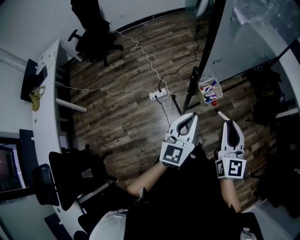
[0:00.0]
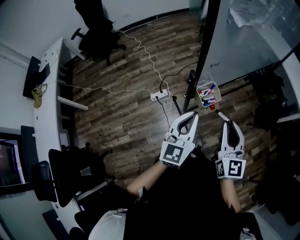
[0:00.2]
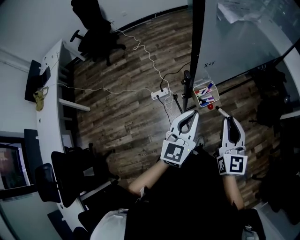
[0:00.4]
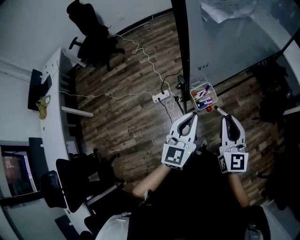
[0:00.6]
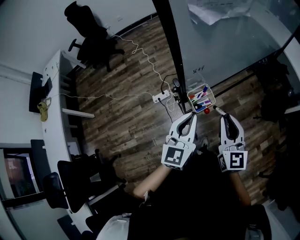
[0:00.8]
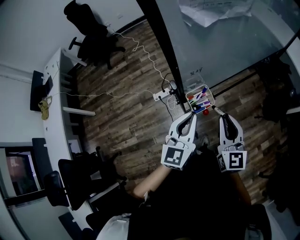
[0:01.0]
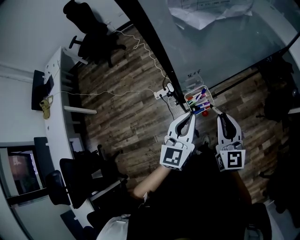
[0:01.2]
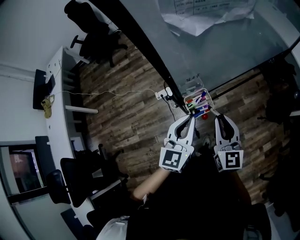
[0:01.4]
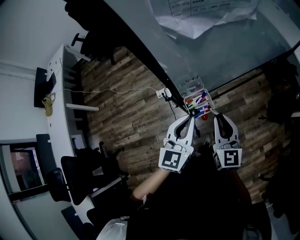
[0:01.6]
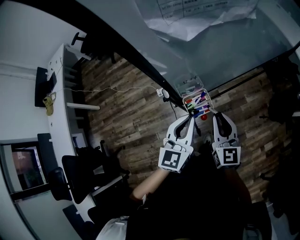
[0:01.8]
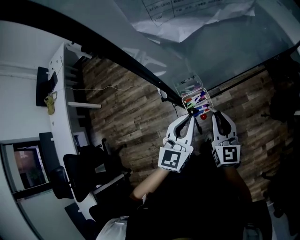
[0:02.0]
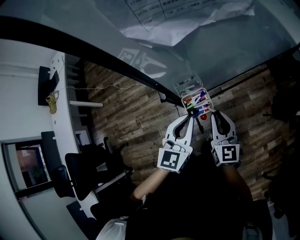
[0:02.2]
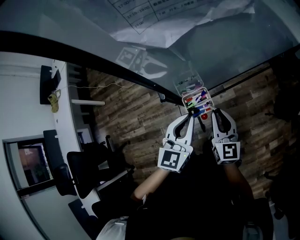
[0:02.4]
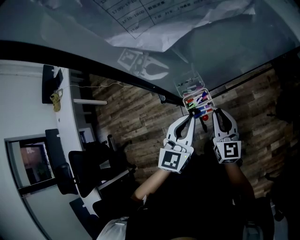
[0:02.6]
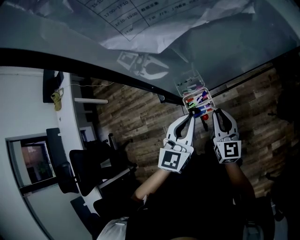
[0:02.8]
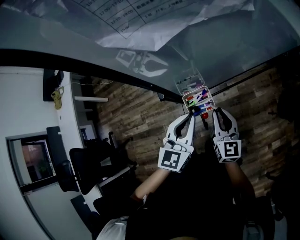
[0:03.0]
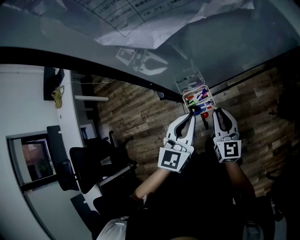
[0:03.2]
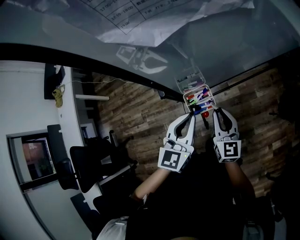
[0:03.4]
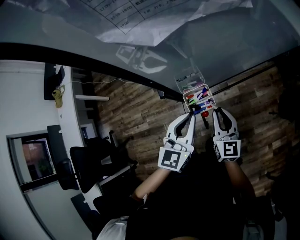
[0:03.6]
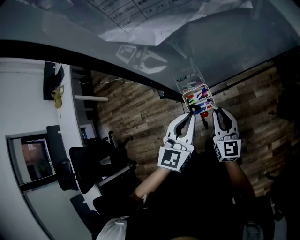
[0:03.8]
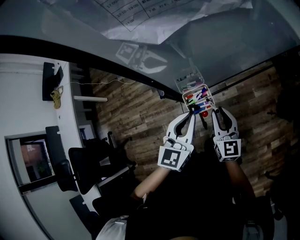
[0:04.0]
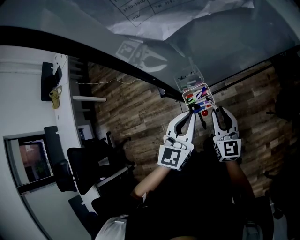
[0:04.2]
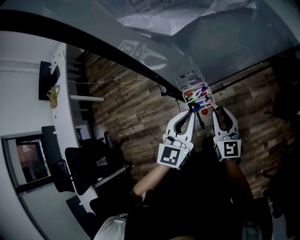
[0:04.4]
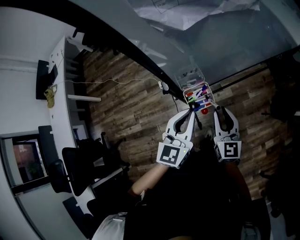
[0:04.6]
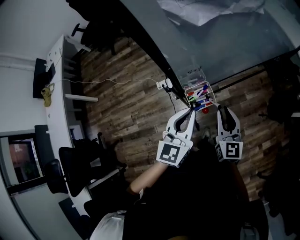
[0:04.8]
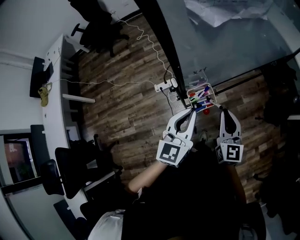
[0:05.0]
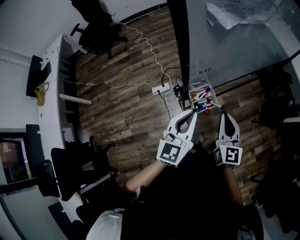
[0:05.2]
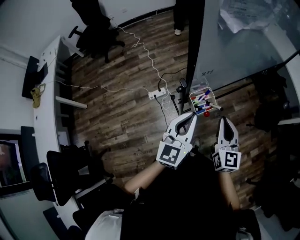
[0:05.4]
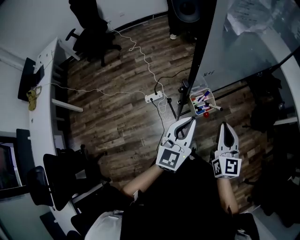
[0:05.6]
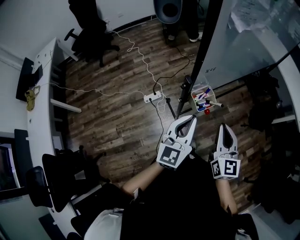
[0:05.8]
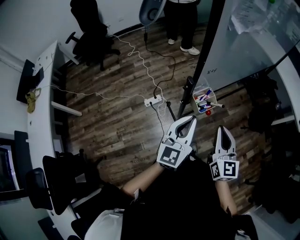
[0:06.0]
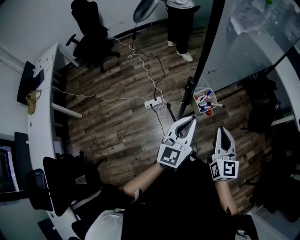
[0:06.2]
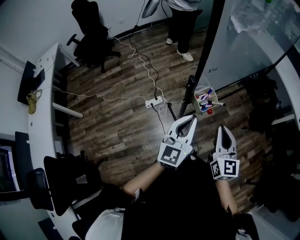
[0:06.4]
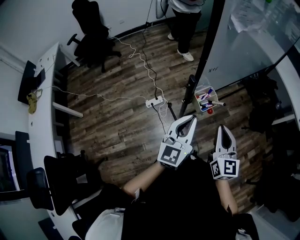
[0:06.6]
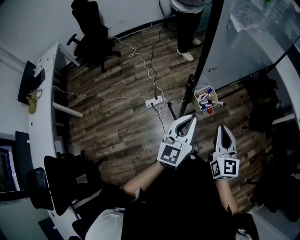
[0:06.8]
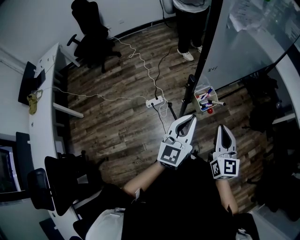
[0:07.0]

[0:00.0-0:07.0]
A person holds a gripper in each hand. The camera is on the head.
0:00.0 to 0:01.4: The right gripper shifts about 15 cm forward and downward; the left gripper heads forward and to the right, covering about 10 cm.
0:01.4 to 0:02.8: The right gripper goes about 10 cm downward.
0:02.8 to 0:04.2: Both grippers stay put.
0:04.2 to 0:05.6: The left gripper heads backward and to the left, covering some 10 cm, while the right gripper travels upward and backward by about 15 cm.
0:05.6 to 0:07.0: The right gripper changes place by approximately 5 cm.

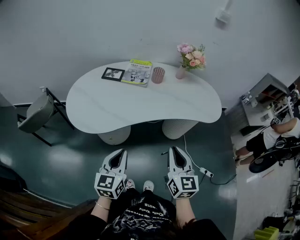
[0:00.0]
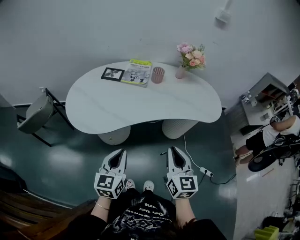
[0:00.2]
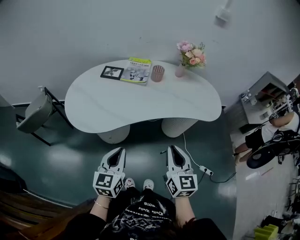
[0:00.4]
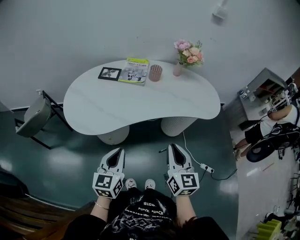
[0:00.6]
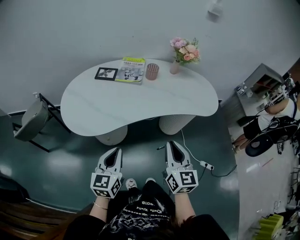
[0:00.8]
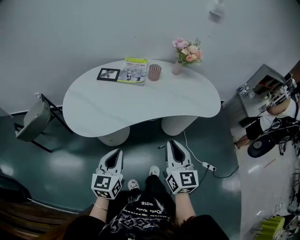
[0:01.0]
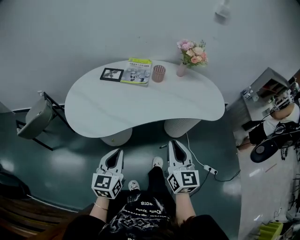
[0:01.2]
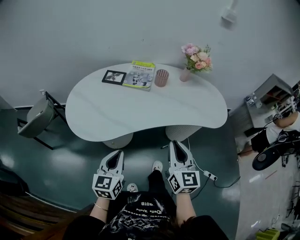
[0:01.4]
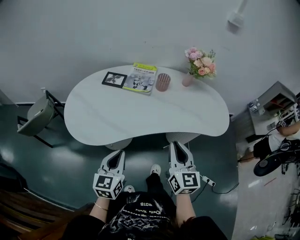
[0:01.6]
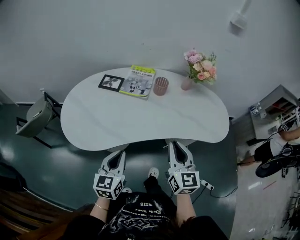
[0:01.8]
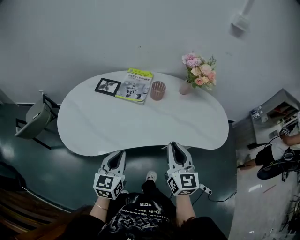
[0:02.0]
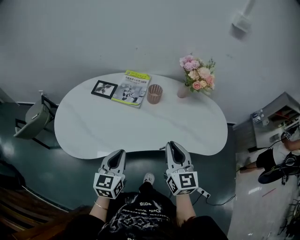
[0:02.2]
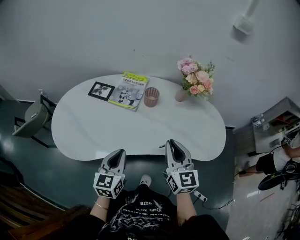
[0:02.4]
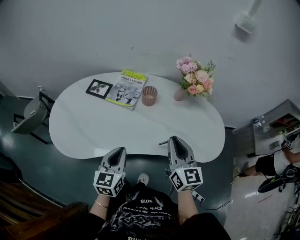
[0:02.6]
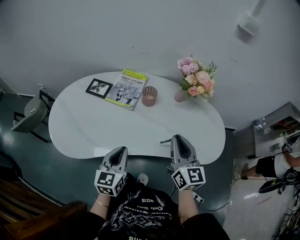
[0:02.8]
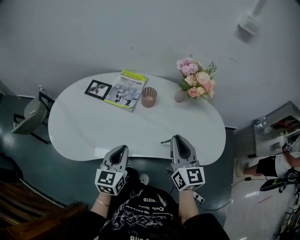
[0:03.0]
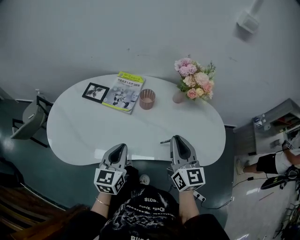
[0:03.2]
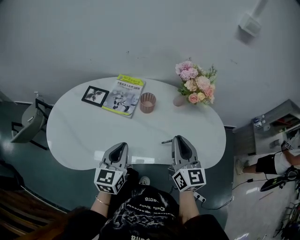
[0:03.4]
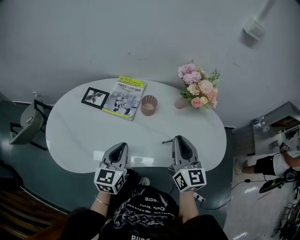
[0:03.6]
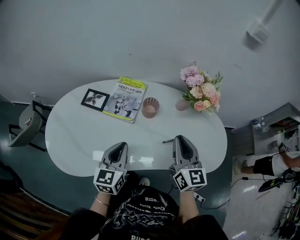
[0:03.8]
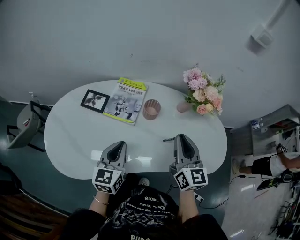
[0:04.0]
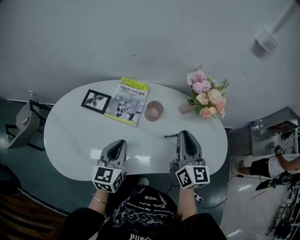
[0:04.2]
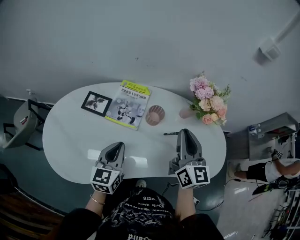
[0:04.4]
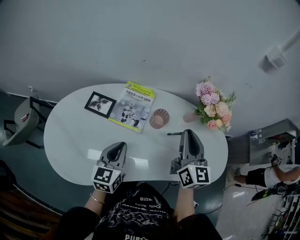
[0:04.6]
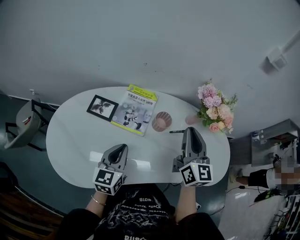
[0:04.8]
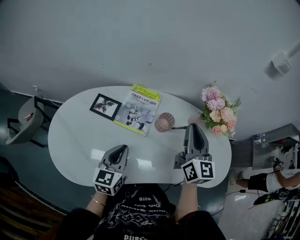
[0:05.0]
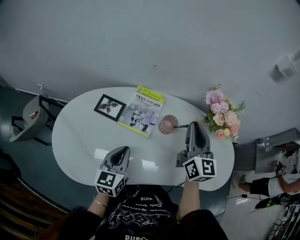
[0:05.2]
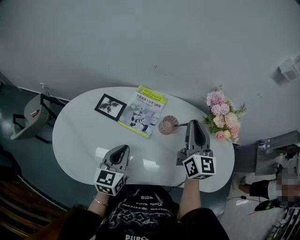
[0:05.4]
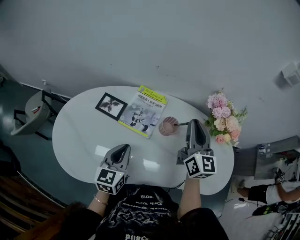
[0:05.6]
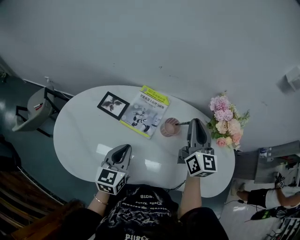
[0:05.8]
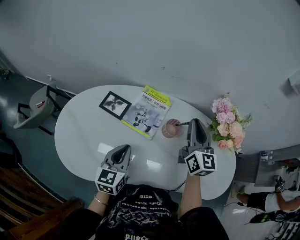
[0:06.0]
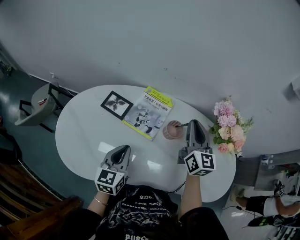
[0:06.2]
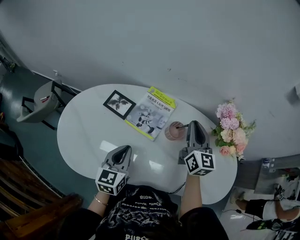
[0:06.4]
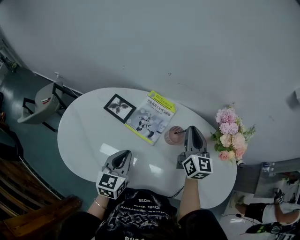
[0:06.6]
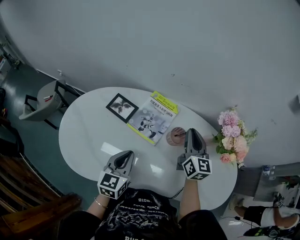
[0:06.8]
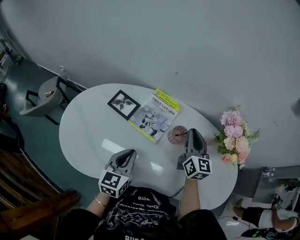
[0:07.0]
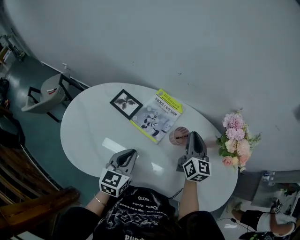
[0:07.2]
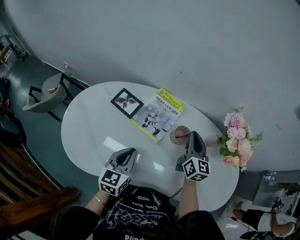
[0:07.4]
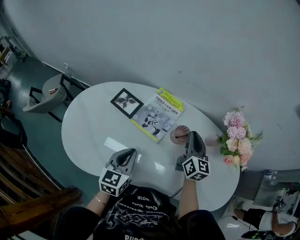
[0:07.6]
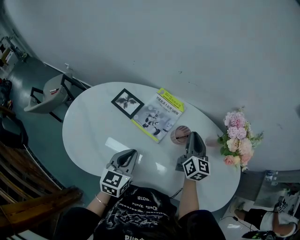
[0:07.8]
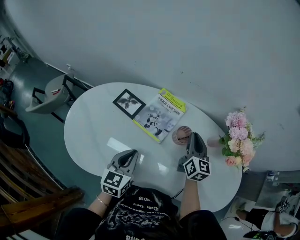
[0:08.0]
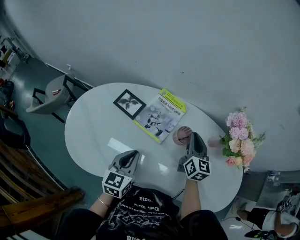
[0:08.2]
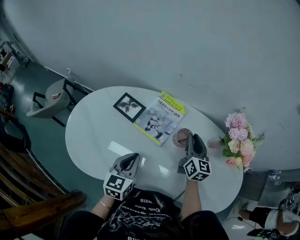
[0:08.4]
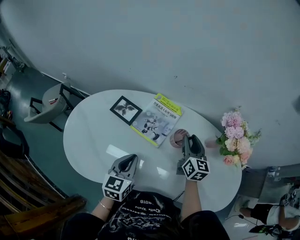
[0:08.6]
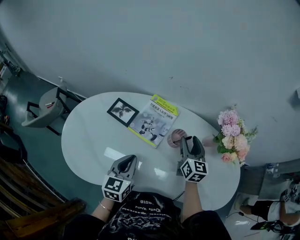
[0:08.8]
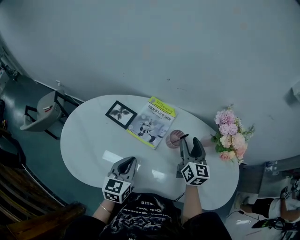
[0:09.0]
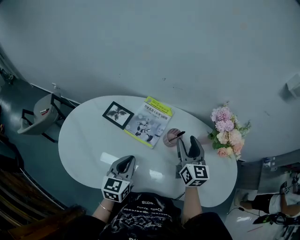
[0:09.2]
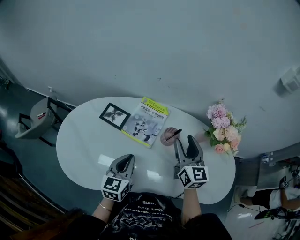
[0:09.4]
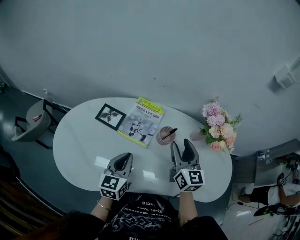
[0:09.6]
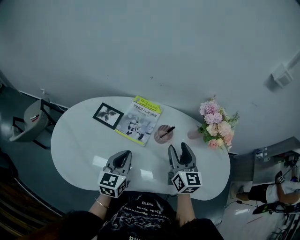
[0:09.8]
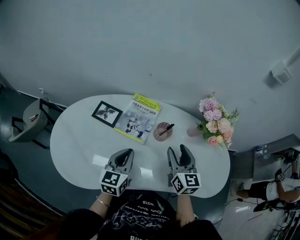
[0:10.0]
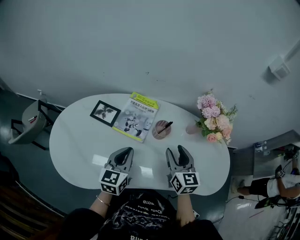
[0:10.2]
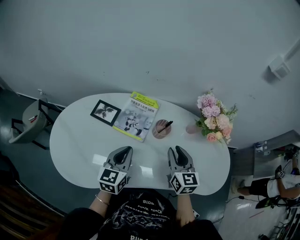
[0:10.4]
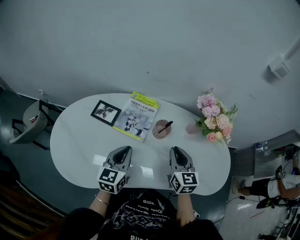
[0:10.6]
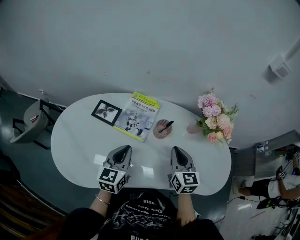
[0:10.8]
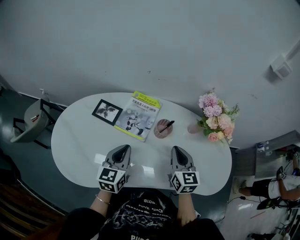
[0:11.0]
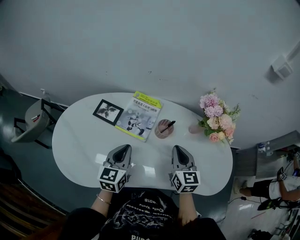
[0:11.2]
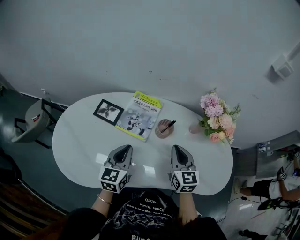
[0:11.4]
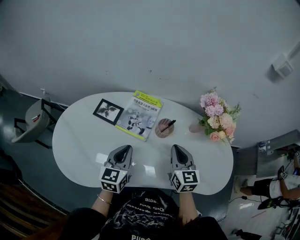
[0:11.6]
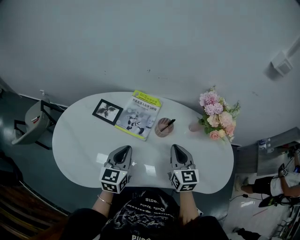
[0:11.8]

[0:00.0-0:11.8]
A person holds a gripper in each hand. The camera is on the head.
0:00.0 to 0:01.4: The right gripper goes about 5 cm forward. Meanwhile the left gripper shifts by approximately 5 cm.
0:01.4 to 0:03.0: Both grippers move forward and to the right, some 30 cm.
0:03.0 to 0:04.4: The two grippers go roughly 15 cm forward and to the left.
0:04.4 to 0:06.0: The right gripper shifts about 15 cm forward.
0:06.0 to 0:07.4: The right gripper goes about 10 cm downward.
0:07.4 to 0:08.8: The right gripper opens up.
0:08.8 to 0:10.4: The right gripper goes roughly 10 cm backward, and closes.
0:10.4 to 0:11.8: The right gripper closes its fingers.

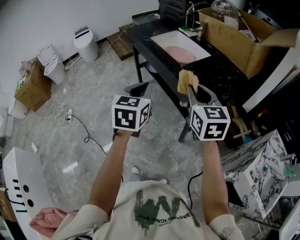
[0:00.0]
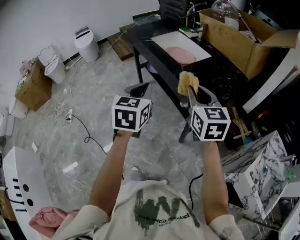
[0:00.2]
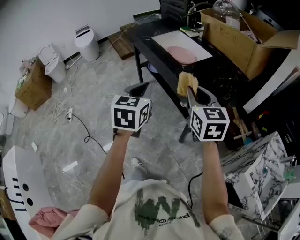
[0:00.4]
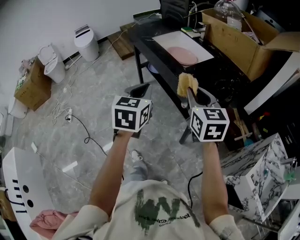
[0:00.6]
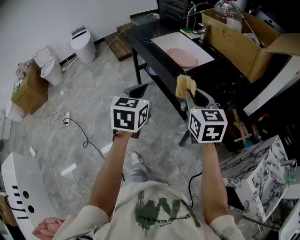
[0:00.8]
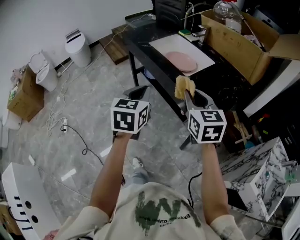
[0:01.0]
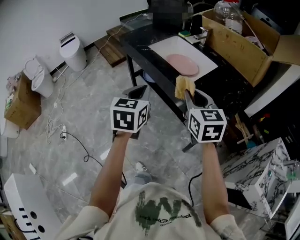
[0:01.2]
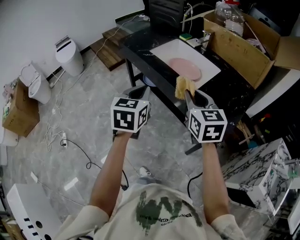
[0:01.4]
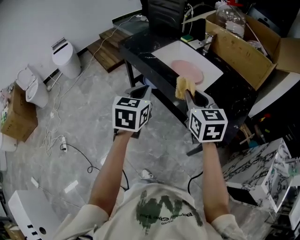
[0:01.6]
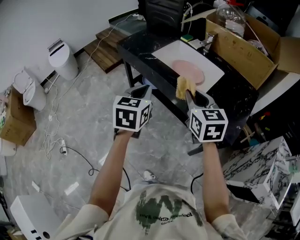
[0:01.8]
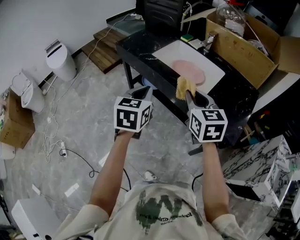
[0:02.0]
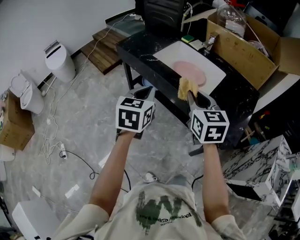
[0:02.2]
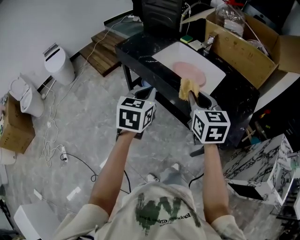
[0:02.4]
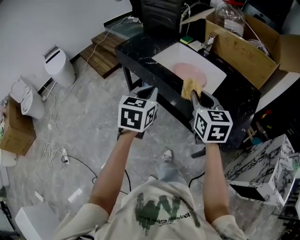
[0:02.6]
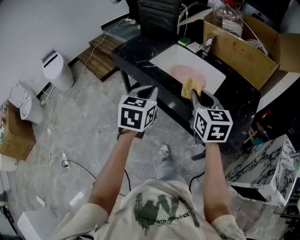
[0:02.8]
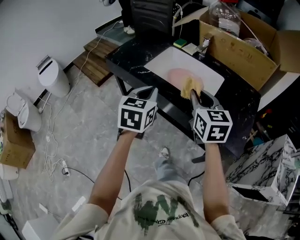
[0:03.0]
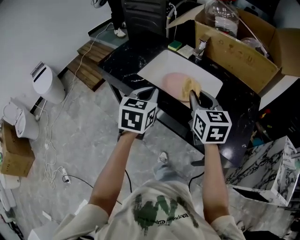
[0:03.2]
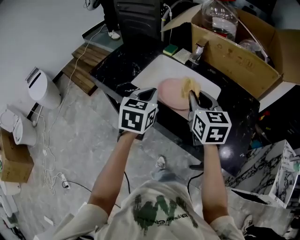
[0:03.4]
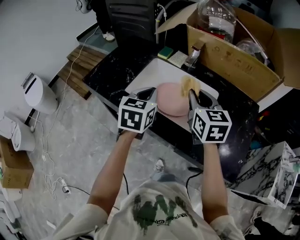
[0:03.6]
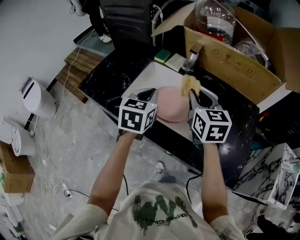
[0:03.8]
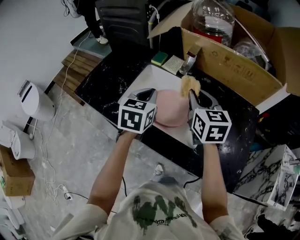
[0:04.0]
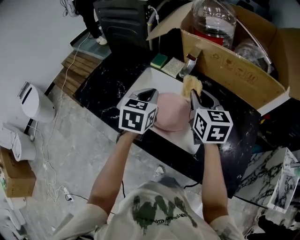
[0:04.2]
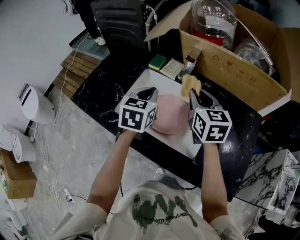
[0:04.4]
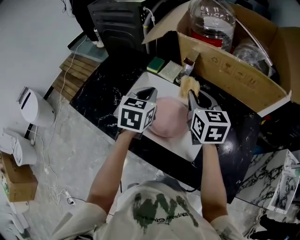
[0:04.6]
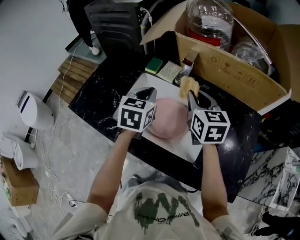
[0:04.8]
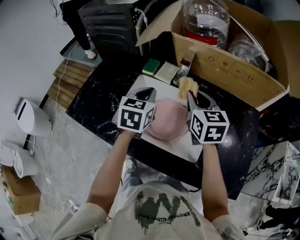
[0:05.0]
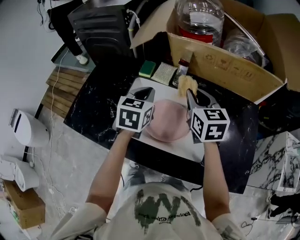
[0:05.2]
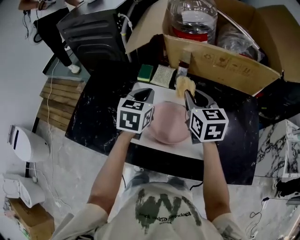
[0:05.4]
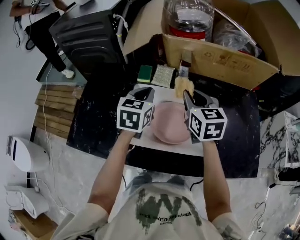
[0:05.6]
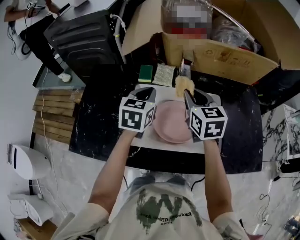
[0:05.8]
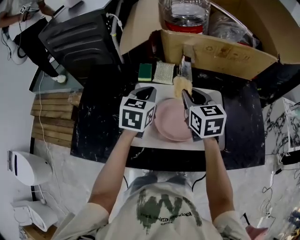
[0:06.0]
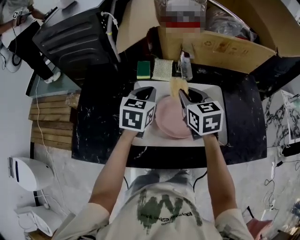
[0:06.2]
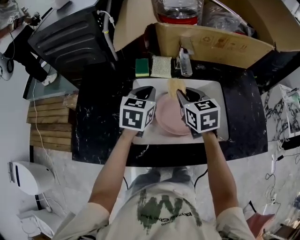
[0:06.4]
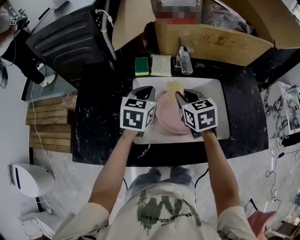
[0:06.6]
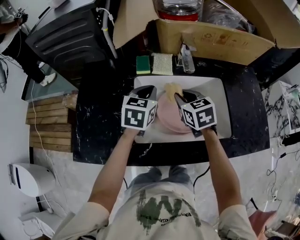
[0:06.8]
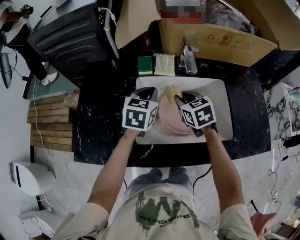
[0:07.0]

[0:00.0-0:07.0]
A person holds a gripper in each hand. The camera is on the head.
0:00.0 to 0:01.4: Both grippers move forward and to the left, some 20 cm.
0:01.4 to 0:02.8: Both grippers travel together forward, some 10 cm.
0:02.8 to 0:04.2: The grippers both shift forward by roughly 30 cm.
0:04.2 to 0:05.6: The right gripper heads forward, covering about 5 cm, while the left gripper travels forward by approximately 10 cm.
0:05.6 to 0:07.0: The left gripper travels downward by approximately 5 cm; the right gripper shifts approximately 15 cm downward and to the left.
